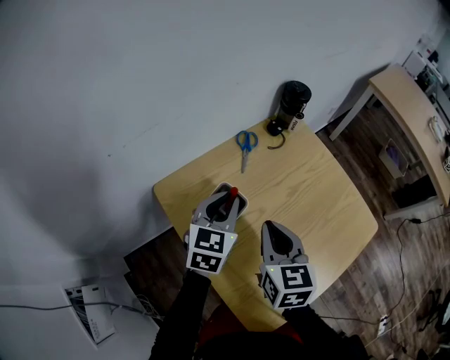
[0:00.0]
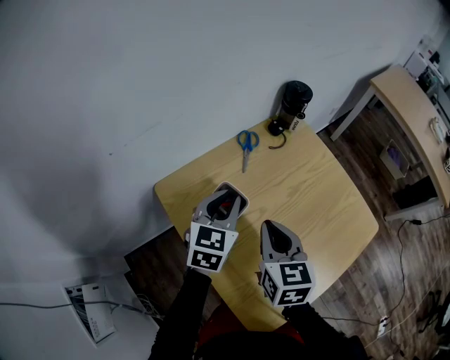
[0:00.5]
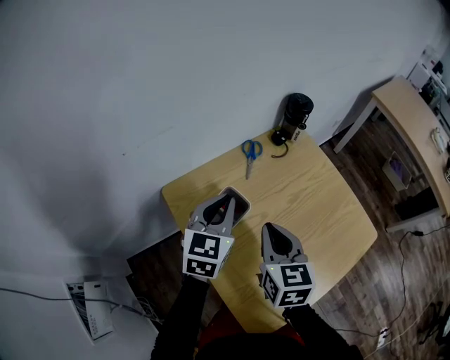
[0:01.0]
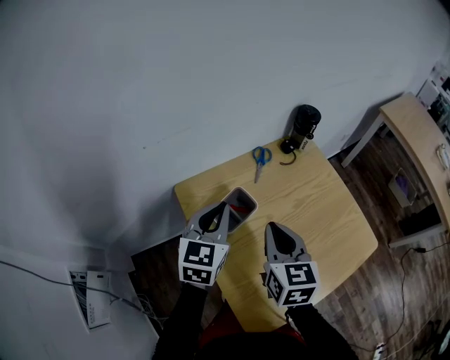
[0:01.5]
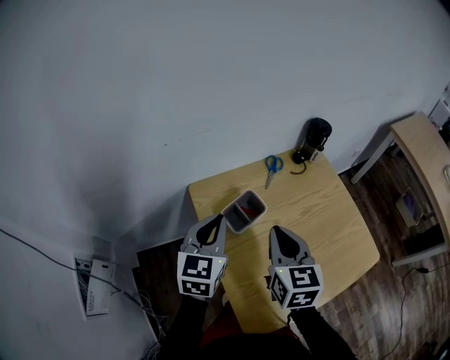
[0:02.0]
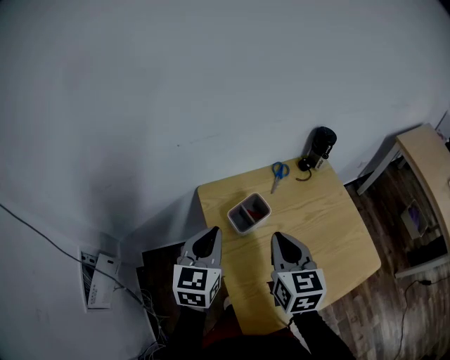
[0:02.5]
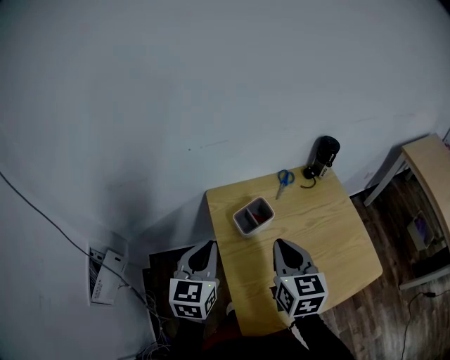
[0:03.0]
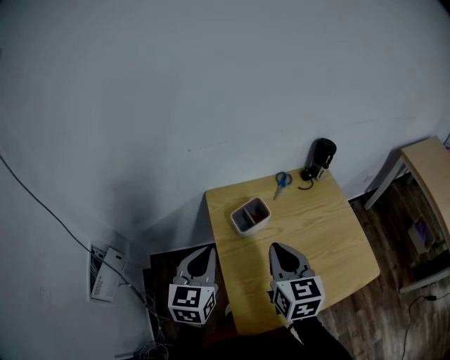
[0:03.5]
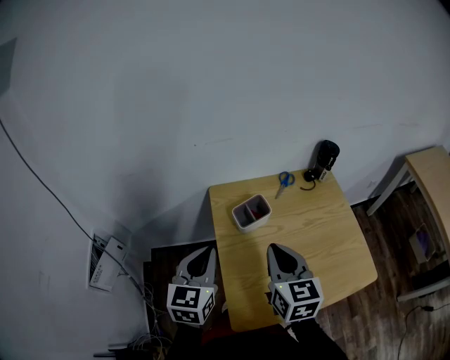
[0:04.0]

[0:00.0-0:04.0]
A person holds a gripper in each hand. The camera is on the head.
0:00.0 to 0:02.0: The left gripper shifts some 15 cm backward, upward and to the left, and rotates some 20 degrees. The right gripper moves upward, about 5 cm.
0:02.0 to 0:04.0: The left gripper travels backward by some 15 cm. The right gripper moves backward, some 10 cm.

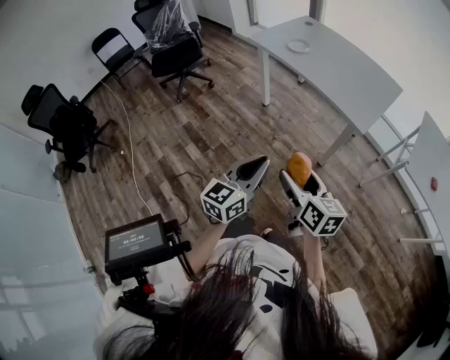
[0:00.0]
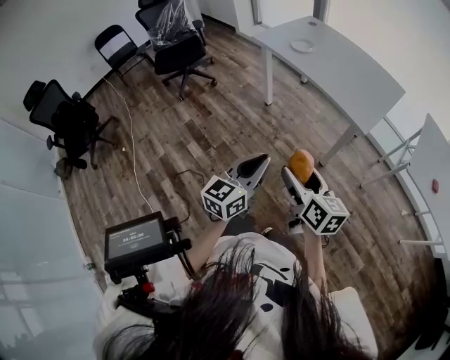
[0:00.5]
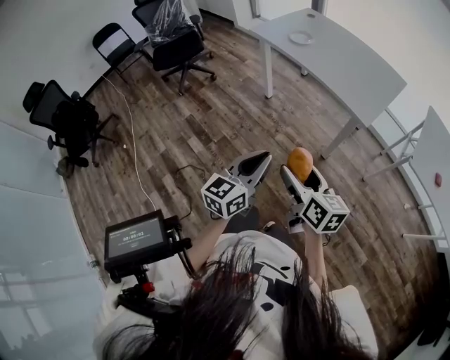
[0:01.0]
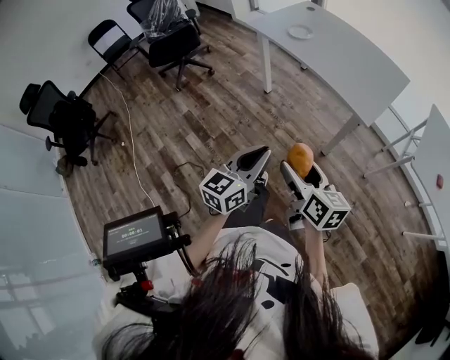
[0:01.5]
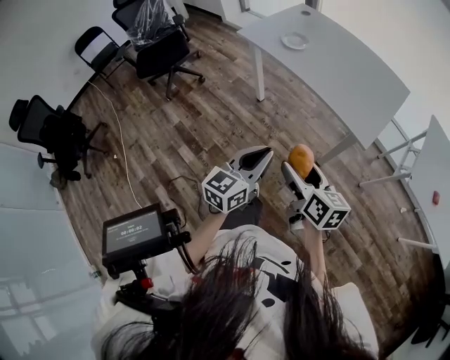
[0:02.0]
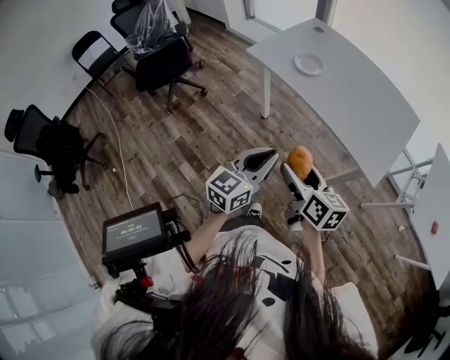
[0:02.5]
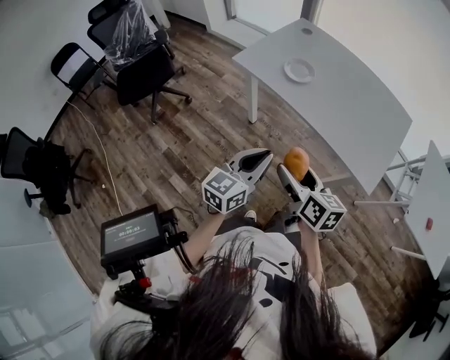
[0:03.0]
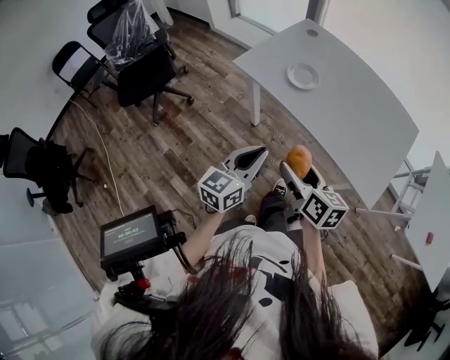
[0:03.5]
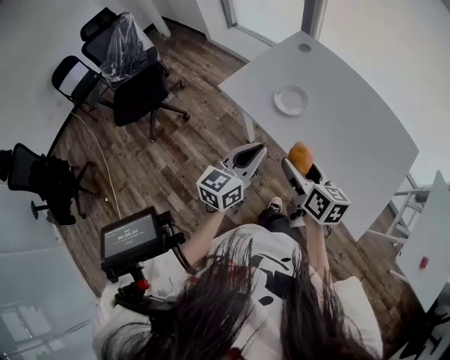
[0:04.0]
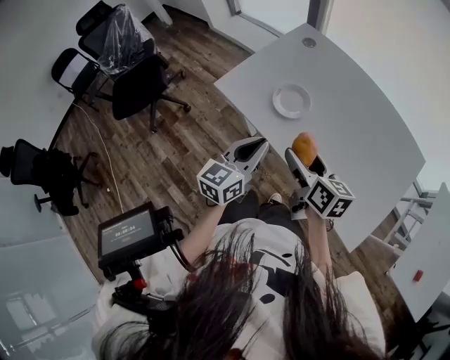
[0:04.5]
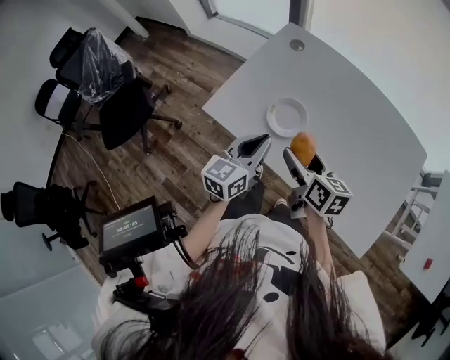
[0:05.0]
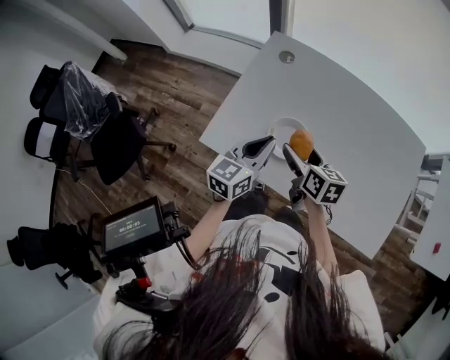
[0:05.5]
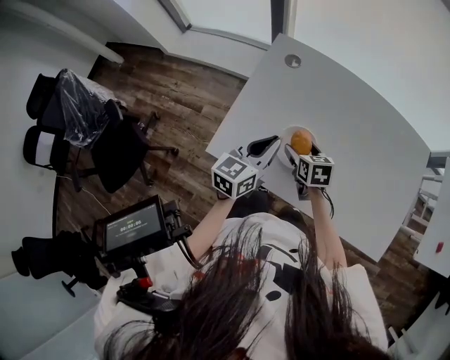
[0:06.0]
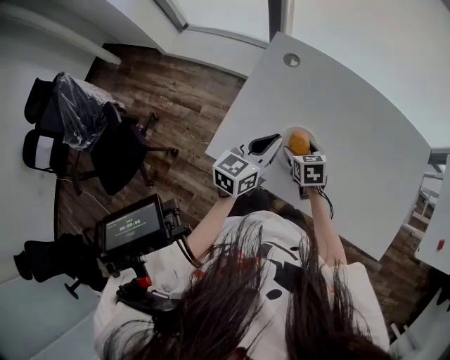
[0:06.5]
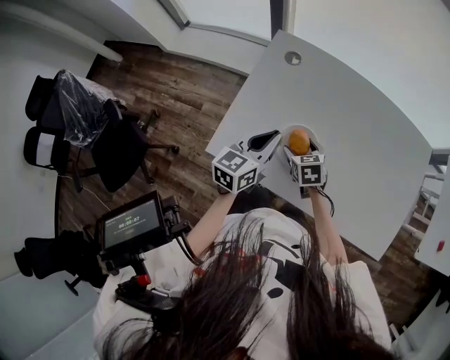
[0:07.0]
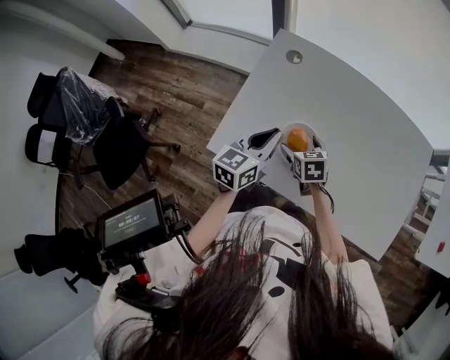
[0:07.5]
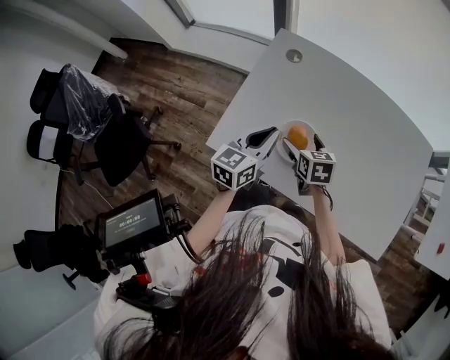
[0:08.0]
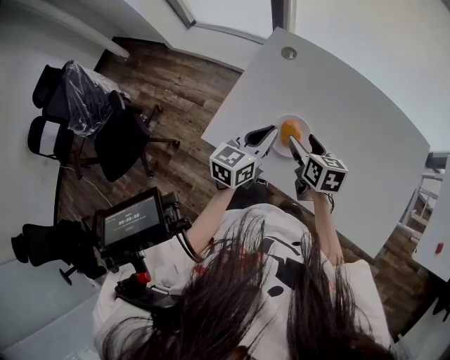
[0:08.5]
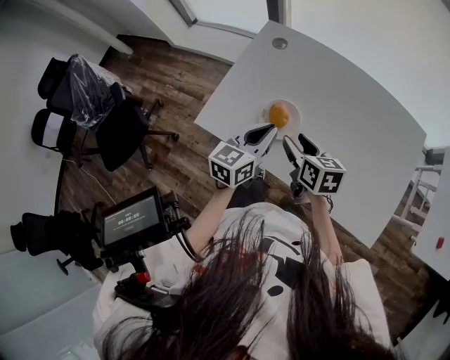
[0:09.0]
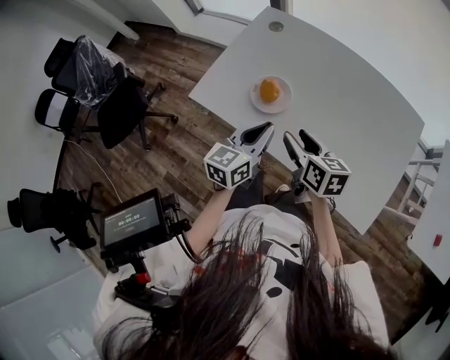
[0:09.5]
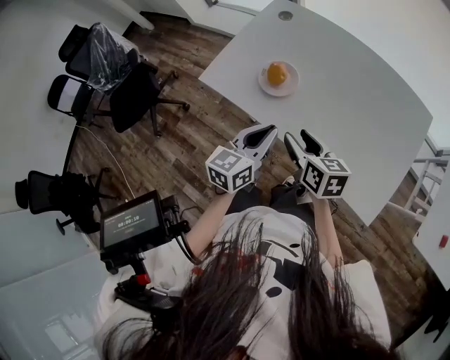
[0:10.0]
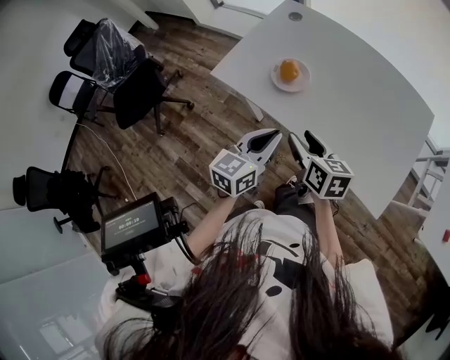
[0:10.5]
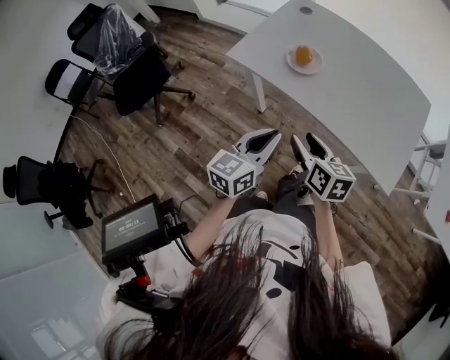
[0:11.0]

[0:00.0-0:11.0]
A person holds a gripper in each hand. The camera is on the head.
0:00.0 to 0:02.0: Both grippers move forward, some 15 cm.
0:02.0 to 0:03.5: The grippers both shift forward by about 30 cm.
0:03.5 to 0:05.5: The two grippers travel together, forward, roughly 40 cm.
0:05.5 to 0:07.5: The right gripper heads downward, covering approximately 10 cm, and changes its angle by approximately 30 degrees.
0:07.5 to 0:09.0: The right gripper goes some 15 cm upward, backward and to the right, turns by about 20 degrees, and closes, while the left gripper goes approximately 10 cm to the right and backward.
0:09.0 to 0:11.0: The two grippers go approximately 30 cm backward.

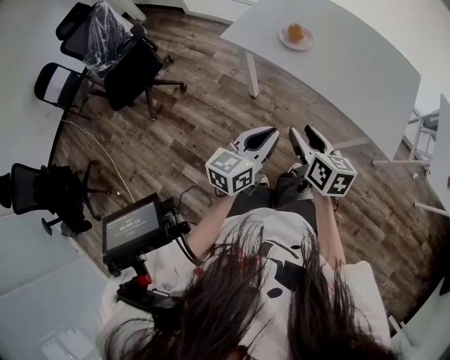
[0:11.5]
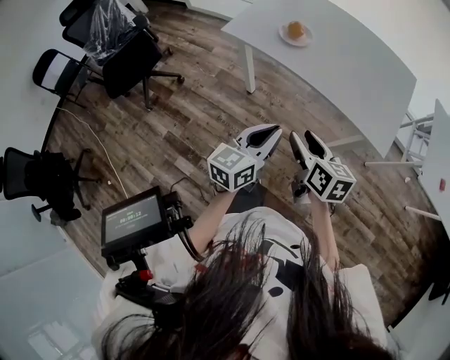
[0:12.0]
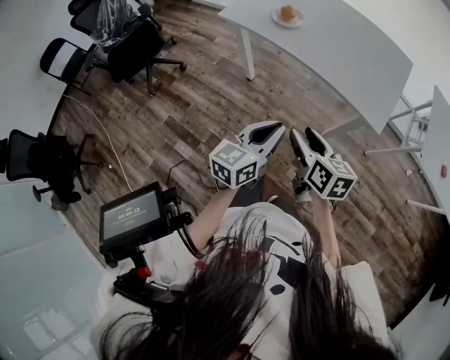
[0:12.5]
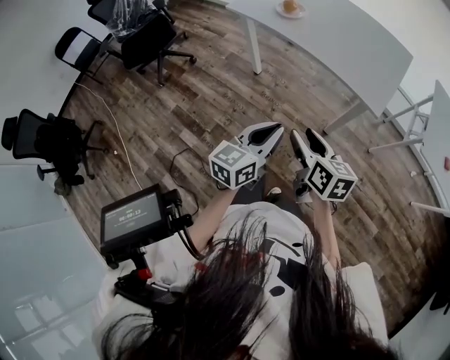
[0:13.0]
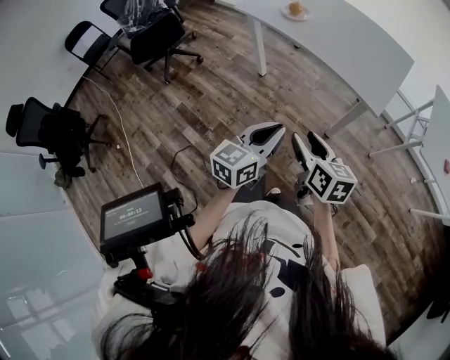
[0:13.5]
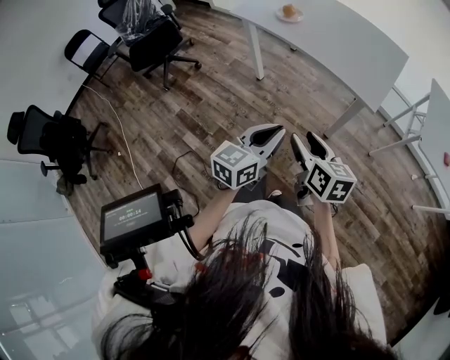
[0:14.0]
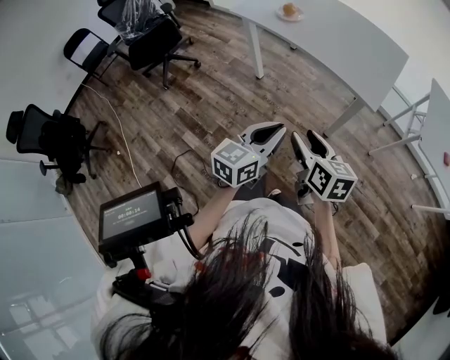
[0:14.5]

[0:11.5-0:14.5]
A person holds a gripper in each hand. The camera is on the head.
0:11.5 to 0:13.0: Both grippers travel together backward and to the right, some 25 cm.
0:13.0 to 0:14.5: The grippers stay close to where they were, moving slightly.

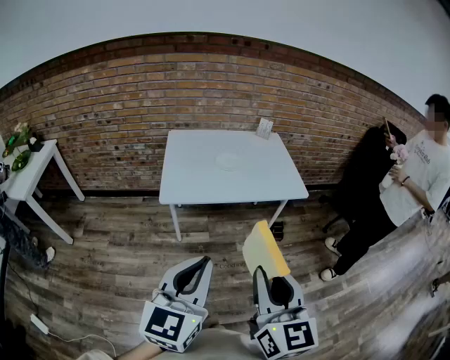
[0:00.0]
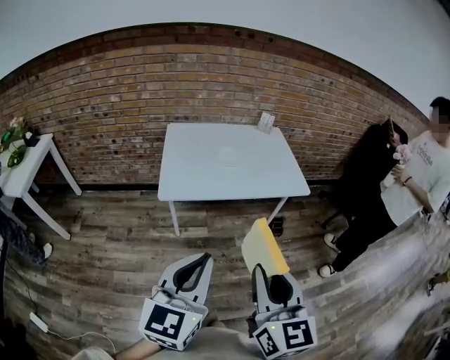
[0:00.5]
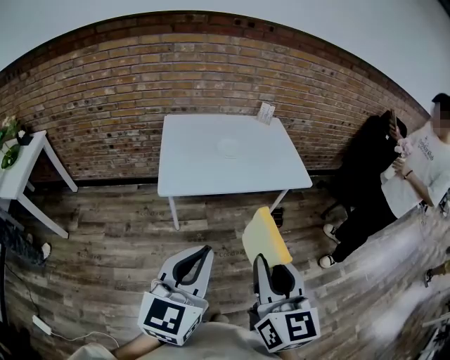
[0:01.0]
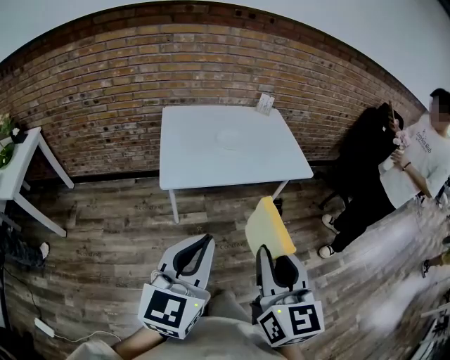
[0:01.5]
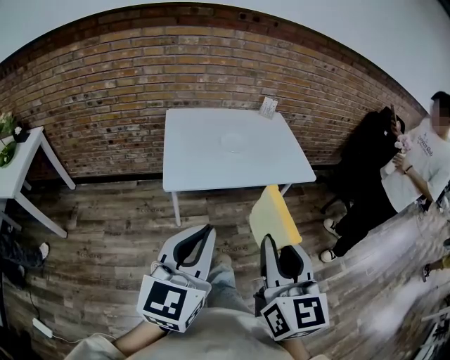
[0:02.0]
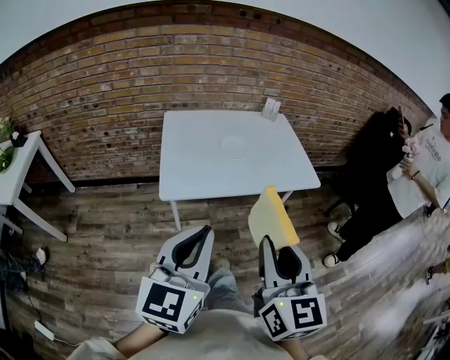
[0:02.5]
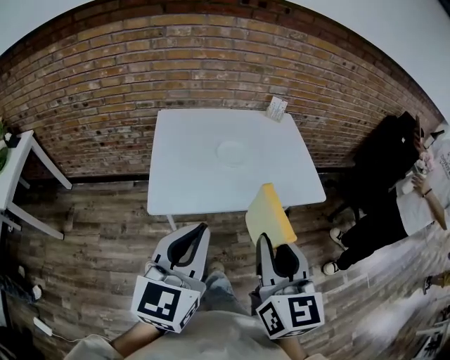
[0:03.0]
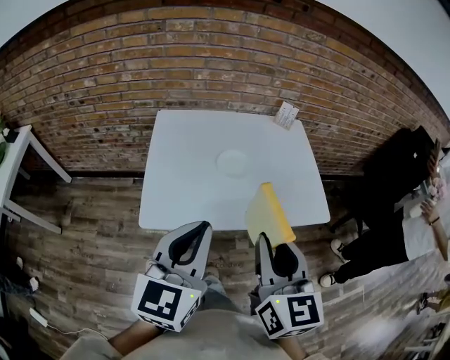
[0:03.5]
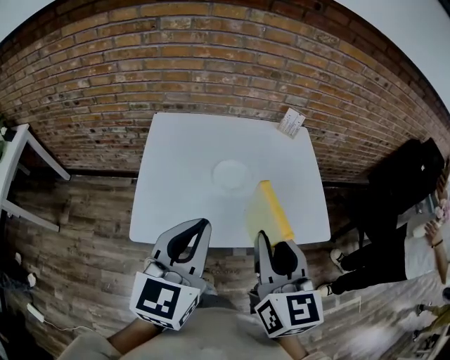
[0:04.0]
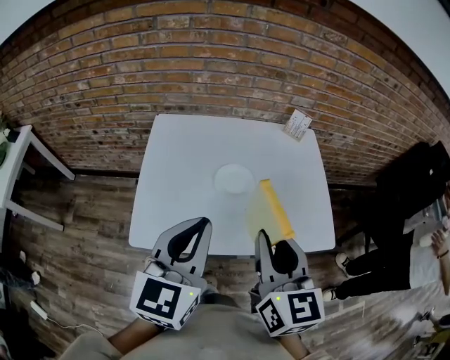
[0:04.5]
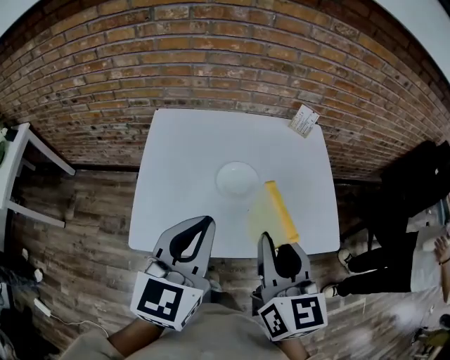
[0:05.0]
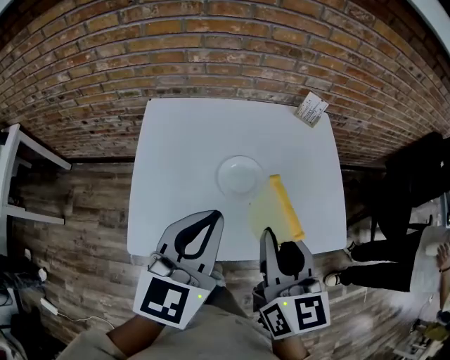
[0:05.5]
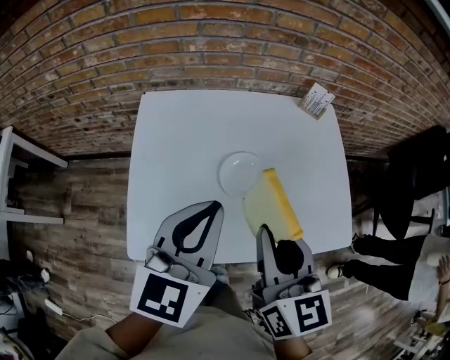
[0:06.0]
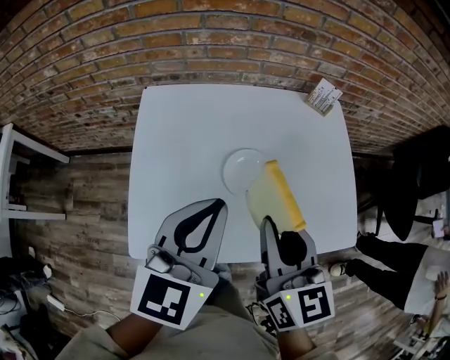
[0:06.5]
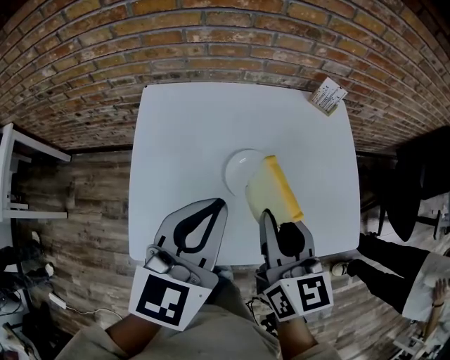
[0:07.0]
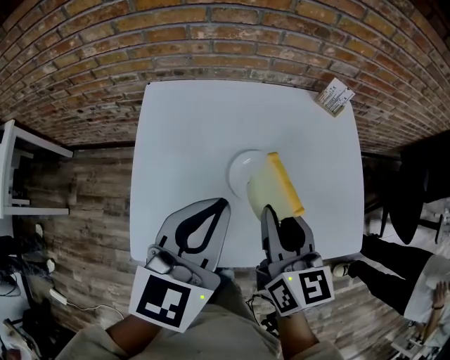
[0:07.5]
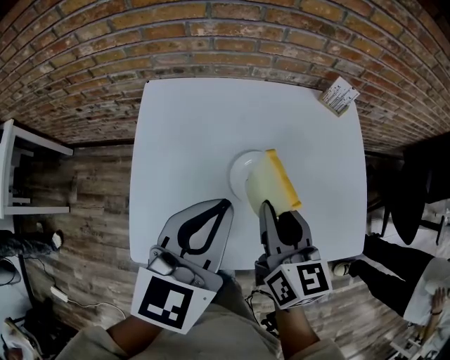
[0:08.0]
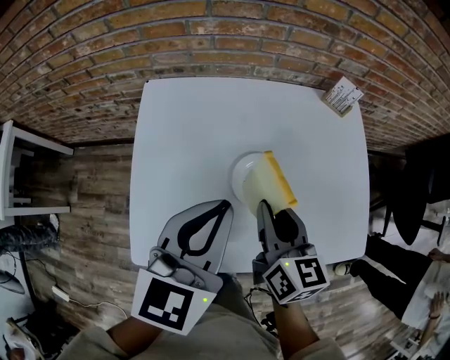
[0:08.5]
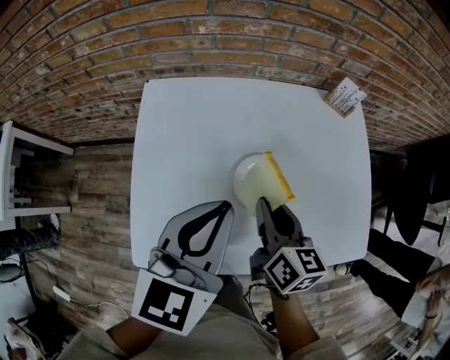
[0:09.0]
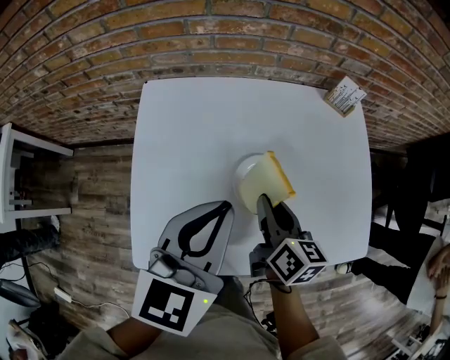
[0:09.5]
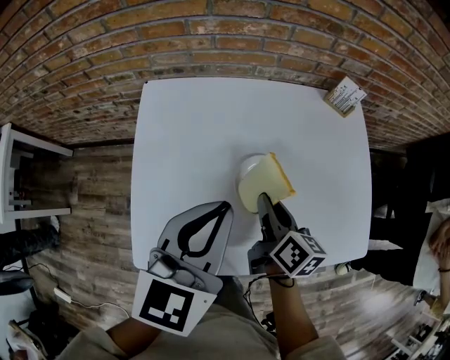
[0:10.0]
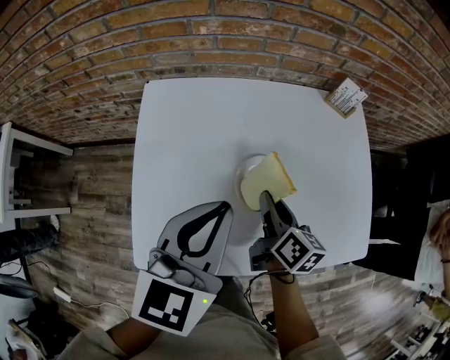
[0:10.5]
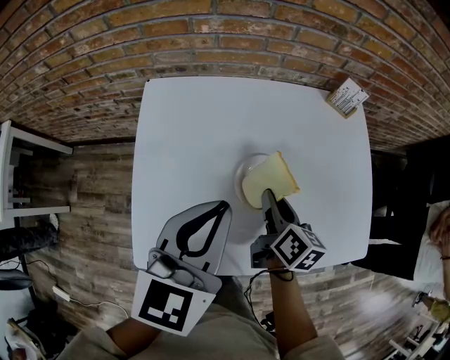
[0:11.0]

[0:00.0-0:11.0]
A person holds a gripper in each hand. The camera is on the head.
0:00.0 to 0:02.0: The two grippers go about 10 cm to the left and forward.
0:02.0 to 0:03.5: The two grippers go some 30 cm forward.
0:03.5 to 0:05.5: Both grippers move forward, some 20 cm.
0:05.5 to 0:07.5: The right gripper heads forward and downward, covering about 10 cm; the left gripper is displaced forward by approximately 5 cm.
0:07.5 to 0:09.0: The right gripper shifts roughly 10 cm downward.
0:09.0 to 0:11.0: The right gripper moves downward, about 5 cm.
